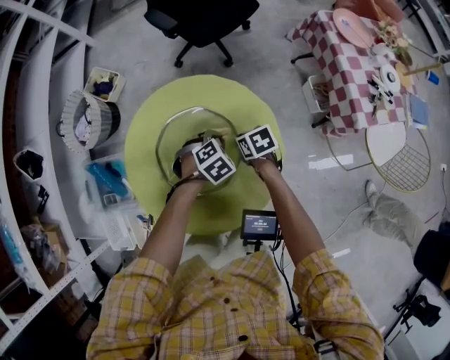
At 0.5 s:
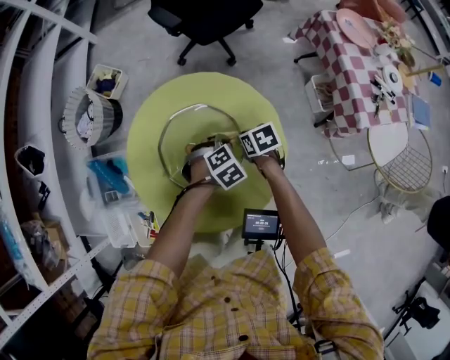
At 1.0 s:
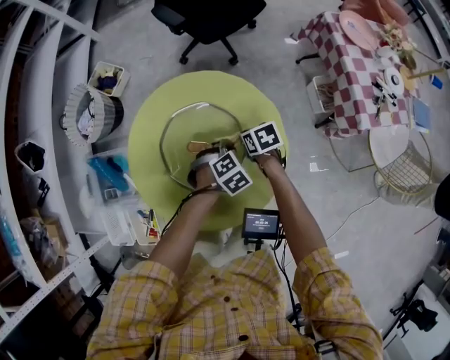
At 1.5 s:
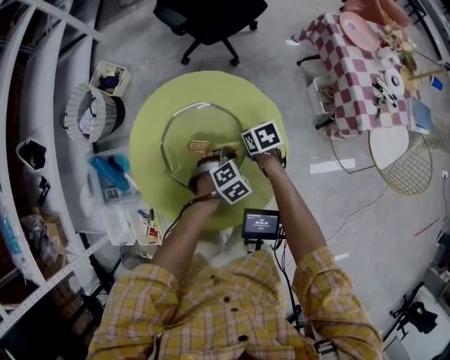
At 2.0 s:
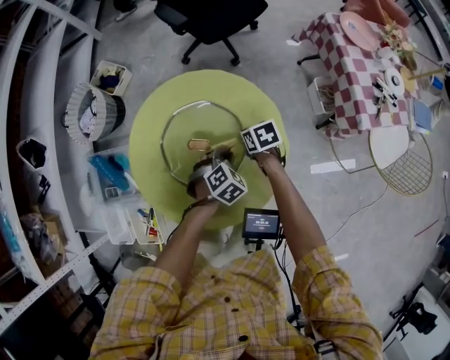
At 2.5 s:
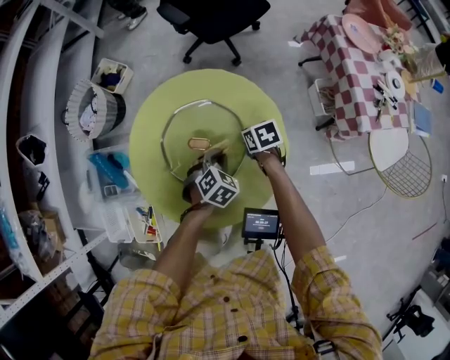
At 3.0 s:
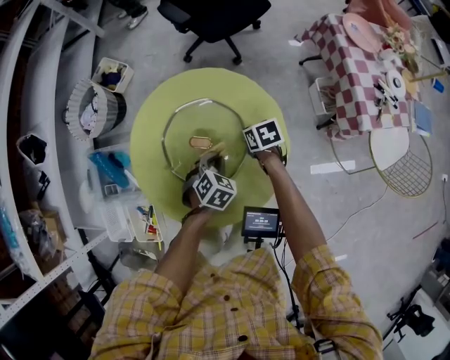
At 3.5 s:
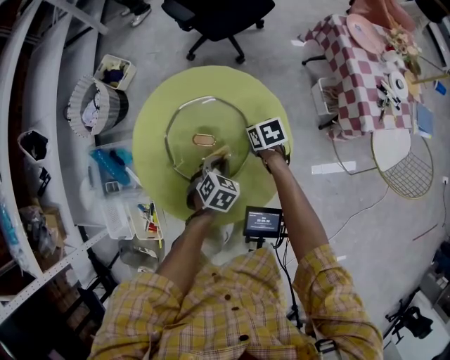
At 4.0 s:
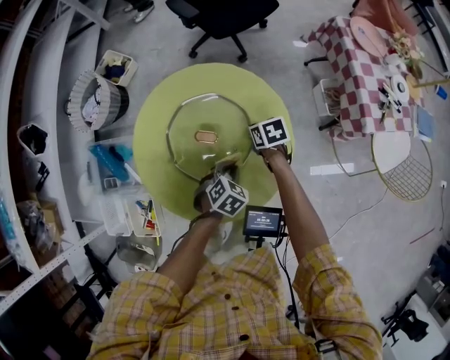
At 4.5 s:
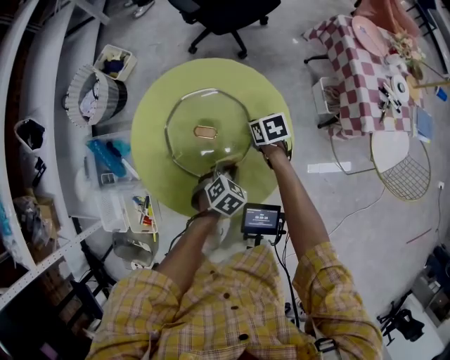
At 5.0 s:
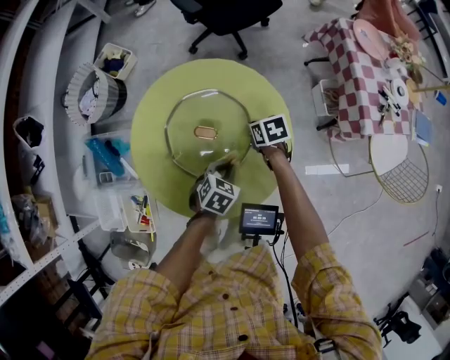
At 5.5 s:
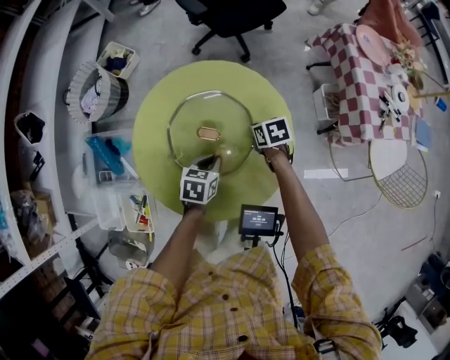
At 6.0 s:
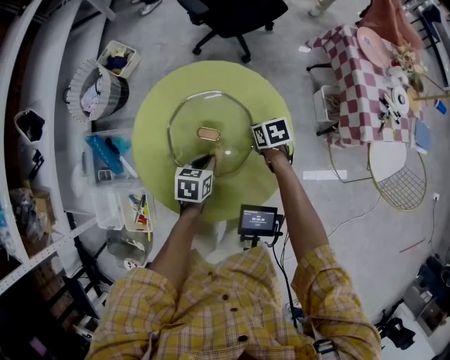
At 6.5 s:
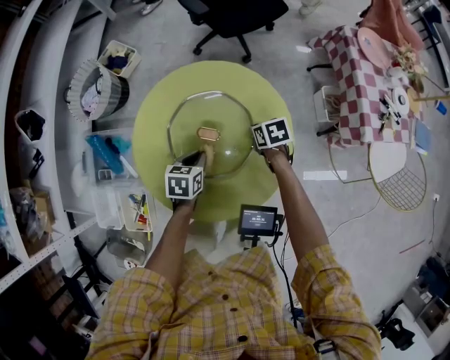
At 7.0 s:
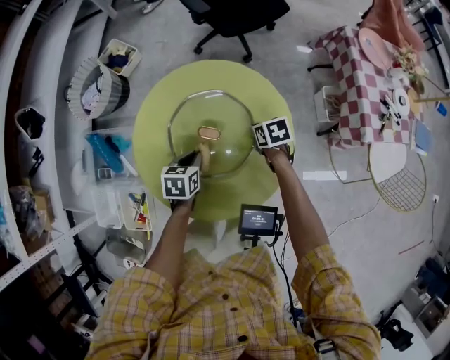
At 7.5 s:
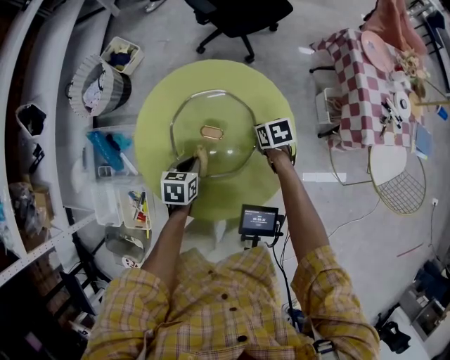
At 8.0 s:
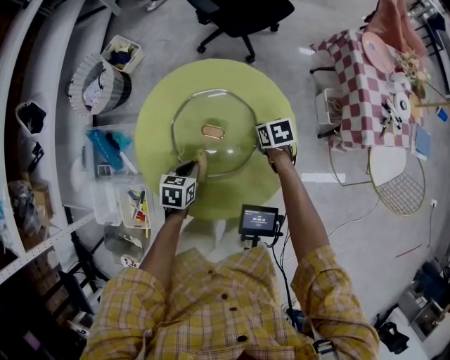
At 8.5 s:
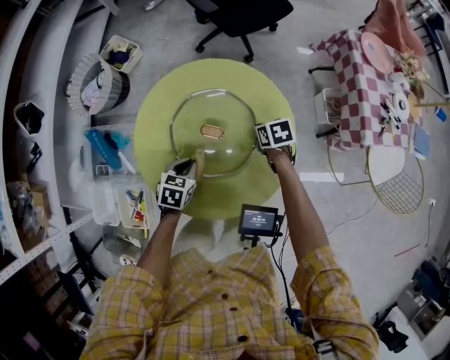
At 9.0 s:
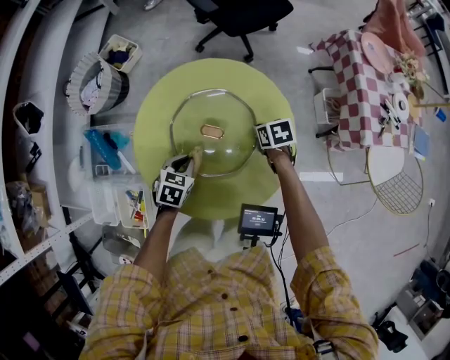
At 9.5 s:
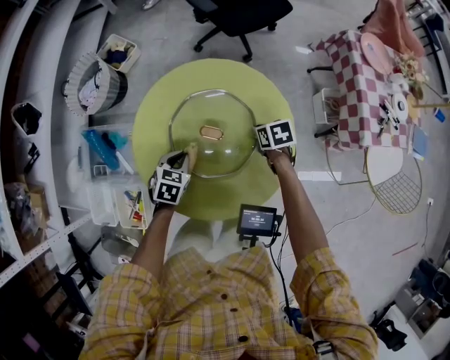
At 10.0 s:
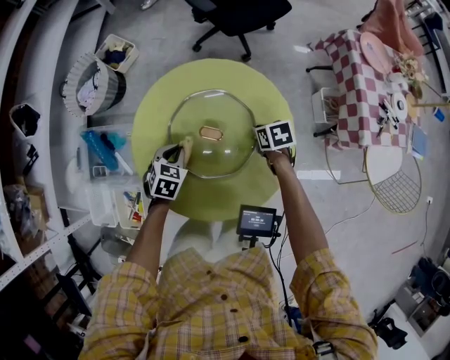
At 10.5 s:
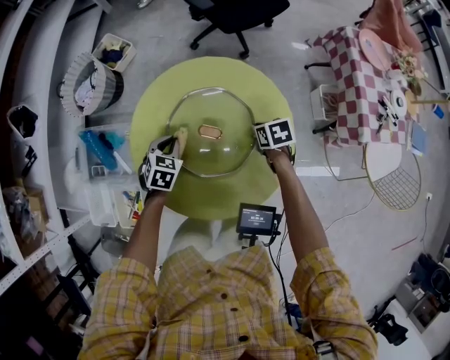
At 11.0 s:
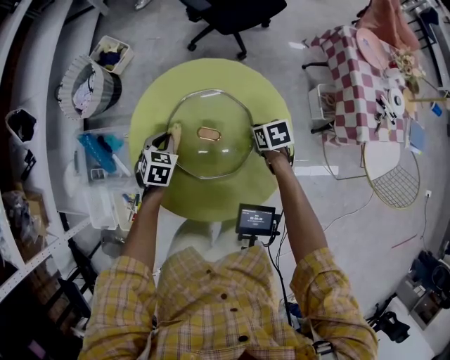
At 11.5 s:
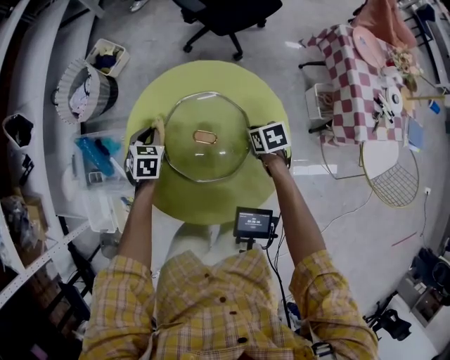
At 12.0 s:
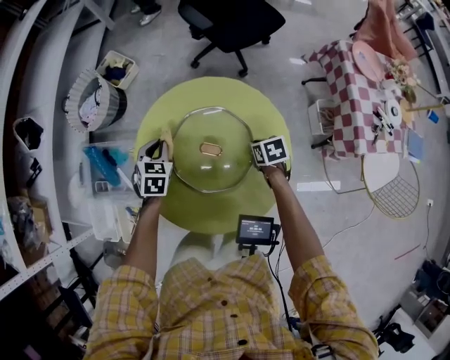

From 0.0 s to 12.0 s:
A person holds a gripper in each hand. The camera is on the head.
From 0.0 s to 2.0 s: The left gripper travels backward by about 5 cm.
From 2.0 s to 4.0 s: The left gripper heads backward, covering some 5 cm.
From 4.0 s to 6.0 s: The left gripper heads to the left, covering roughly 10 cm, and changes its angle by approximately 40 degrees.
From 6.0 s to 8.0 s: The left gripper shifts approximately 5 cm to the left.
From 8.0 s to 10.0 s: The left gripper shifts approximately 5 cm forward, and swivels approximately 20 degrees.
From 10.0 s to 12.0 s: The left gripper moves forward and upward, roughly 10 cm.

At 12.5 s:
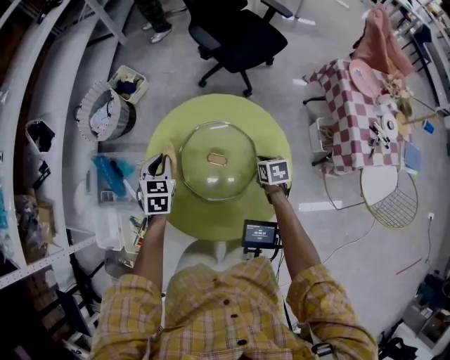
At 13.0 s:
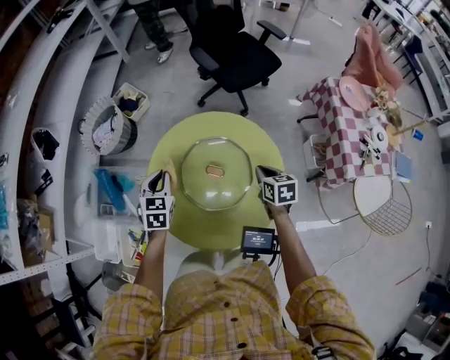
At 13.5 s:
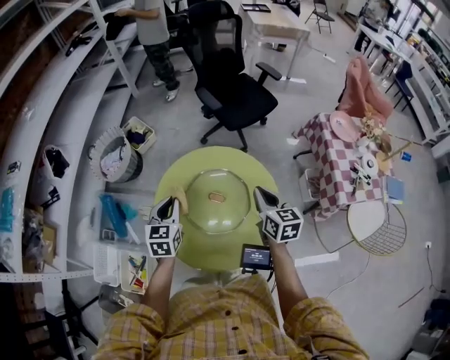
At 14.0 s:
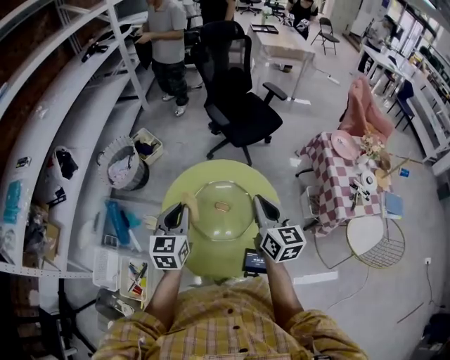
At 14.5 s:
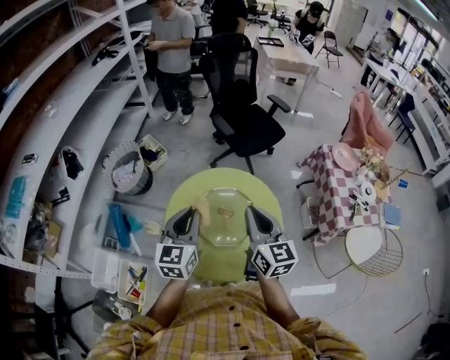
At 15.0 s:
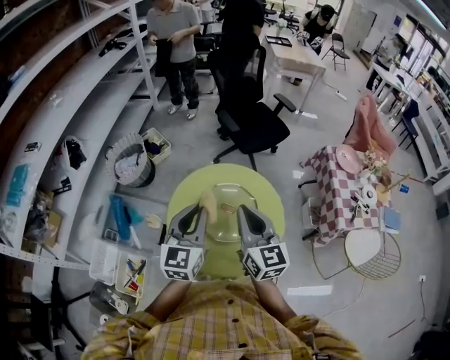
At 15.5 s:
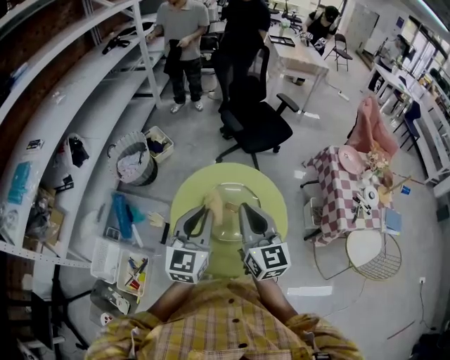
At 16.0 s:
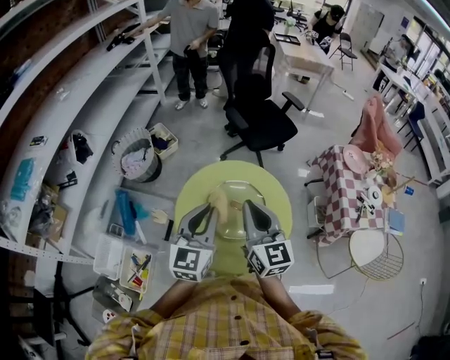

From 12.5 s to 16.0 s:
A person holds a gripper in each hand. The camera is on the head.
From 12.5 s to 14.5 s: The left gripper travels upward and backward by about 30 cm, and points its fingers some 30 degrees further upward. Meanwhile the right gripper goes about 40 cm upward, and tips its fingers upward by approximately 50 degrees.
From 14.5 s to 16.0 s: The right gripper heads to the left, covering some 5 cm.

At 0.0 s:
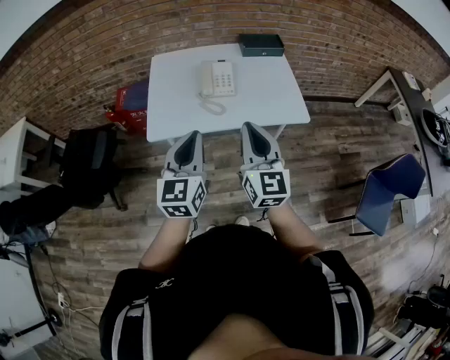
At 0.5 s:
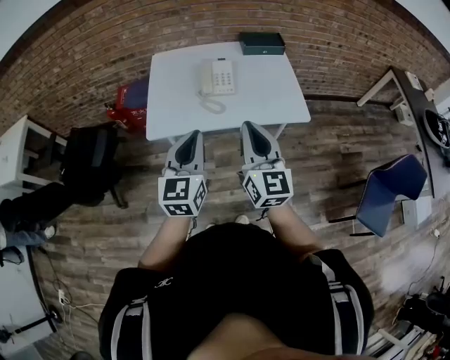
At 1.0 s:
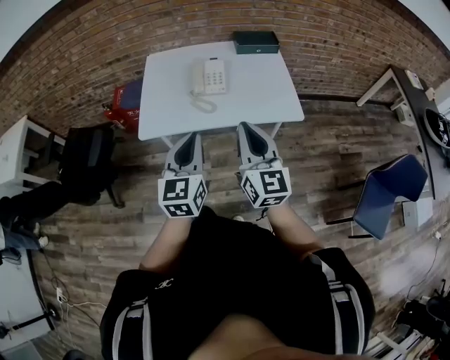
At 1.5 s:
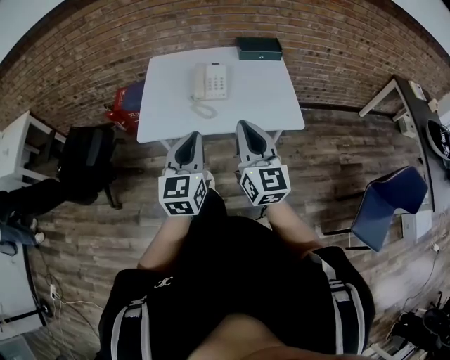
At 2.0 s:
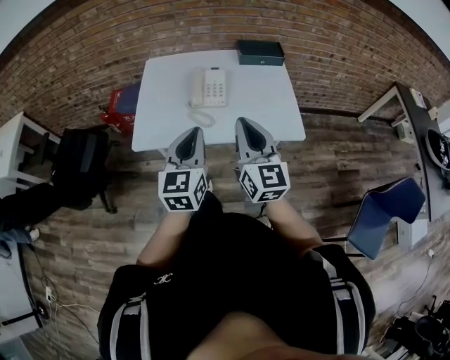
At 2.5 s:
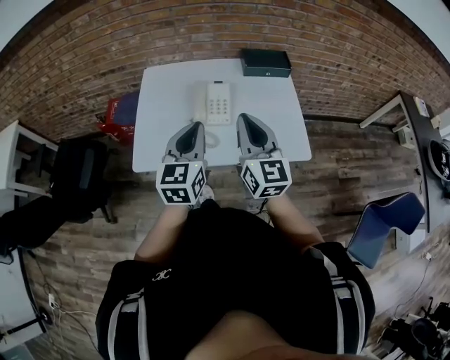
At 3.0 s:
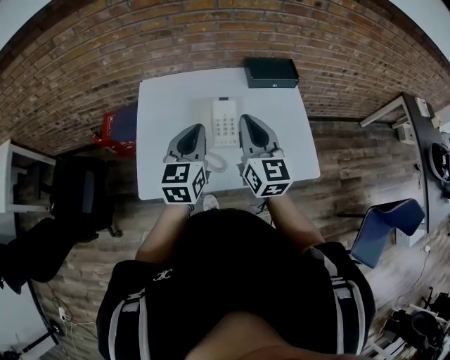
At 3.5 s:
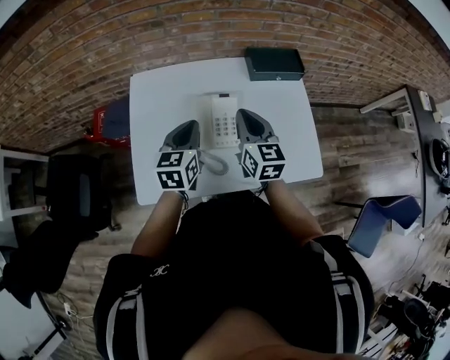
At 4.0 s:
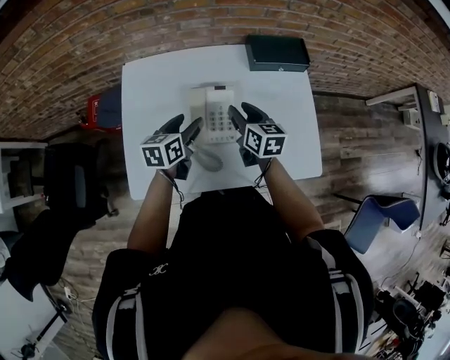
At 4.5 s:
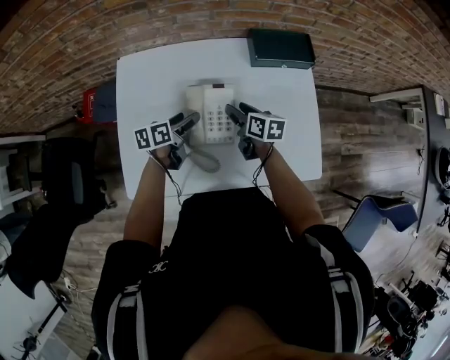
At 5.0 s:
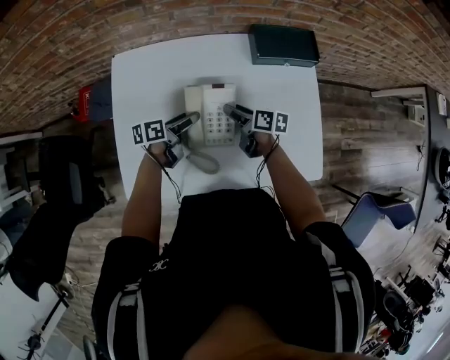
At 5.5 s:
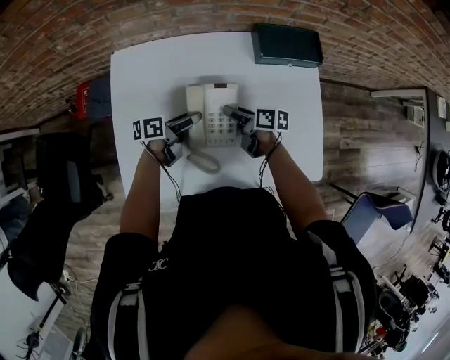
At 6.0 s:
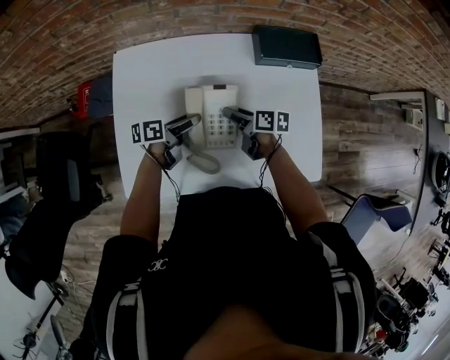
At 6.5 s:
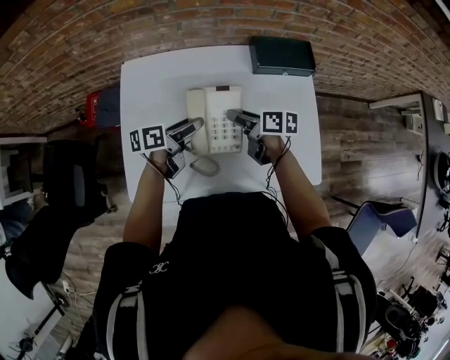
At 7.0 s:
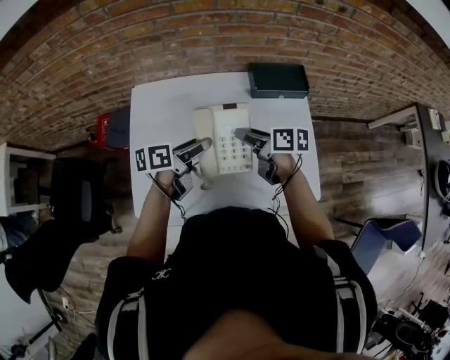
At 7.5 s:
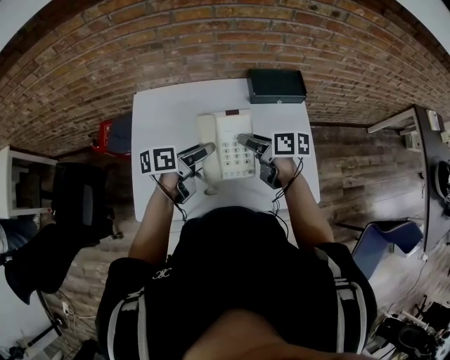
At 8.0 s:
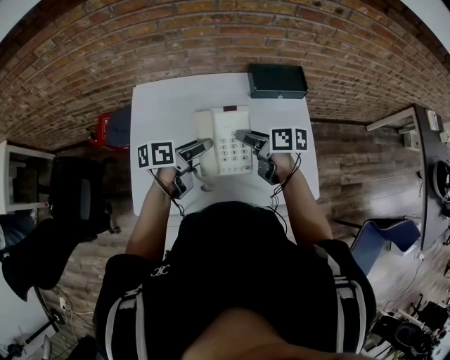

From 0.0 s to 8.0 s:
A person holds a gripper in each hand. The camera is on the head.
From 0.0 s to 2.0 s: Both grippers move forward and to the right, some 10 cm.
From 2.0 s to 4.0 s: Both grippers travel together forward and downward, about 40 cm. The left gripper turns by about 40 degrees, and opens its fingers; the right gripper angles its fingers downward, by approximately 30 degrees, and opens up.
From 4.0 s to 6.0 s: The grippers both shift downward by some 10 cm. The right gripper rotates some 40 degrees. The left gripper turns by roughly 40 degrees.
From 6.0 s to 8.0 s: Both grippers travel together upward, some 15 cm.

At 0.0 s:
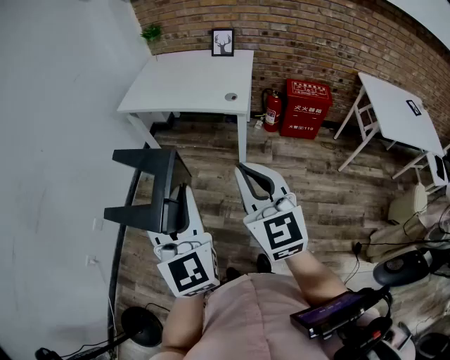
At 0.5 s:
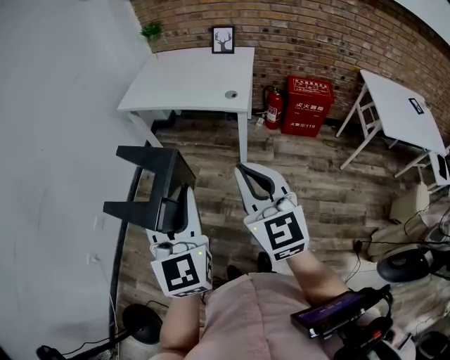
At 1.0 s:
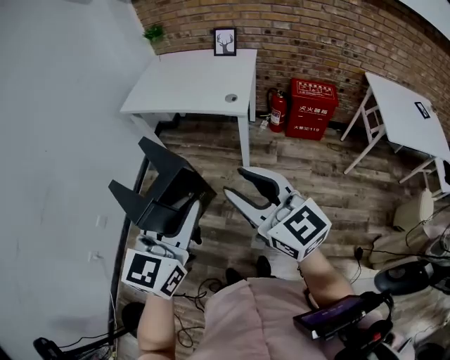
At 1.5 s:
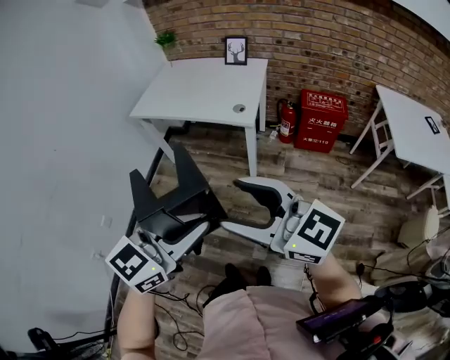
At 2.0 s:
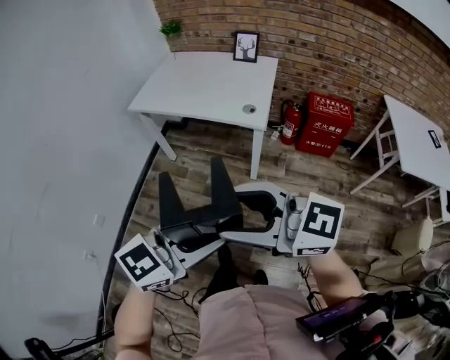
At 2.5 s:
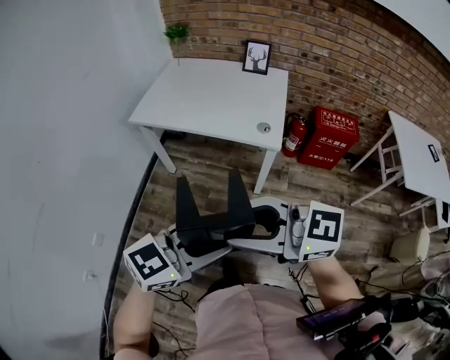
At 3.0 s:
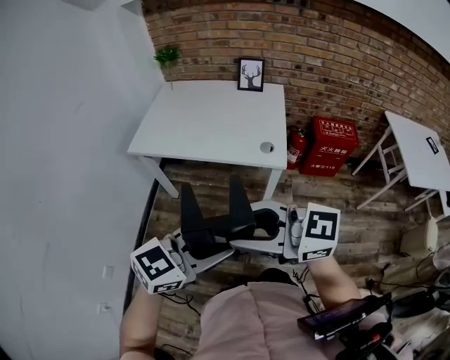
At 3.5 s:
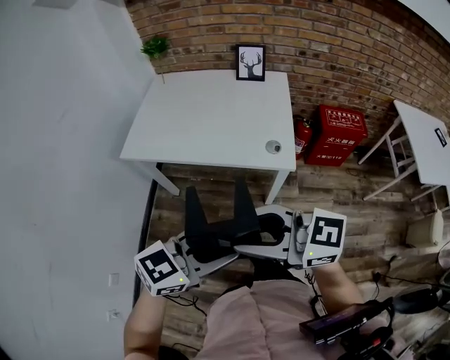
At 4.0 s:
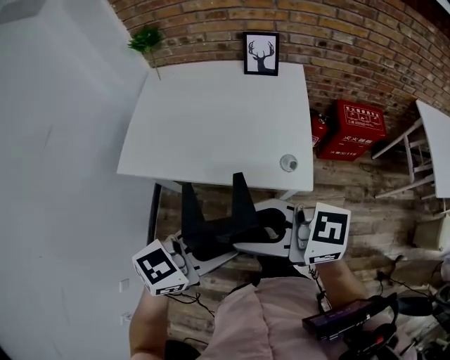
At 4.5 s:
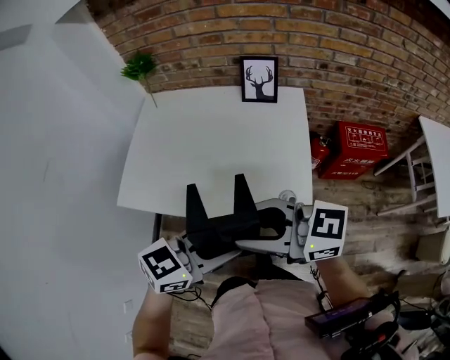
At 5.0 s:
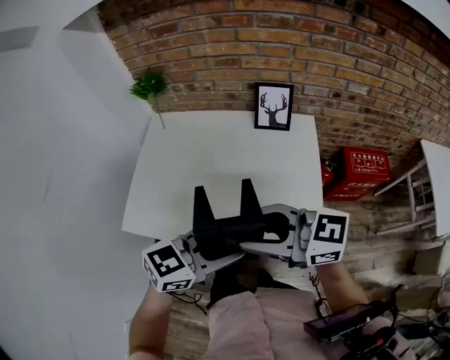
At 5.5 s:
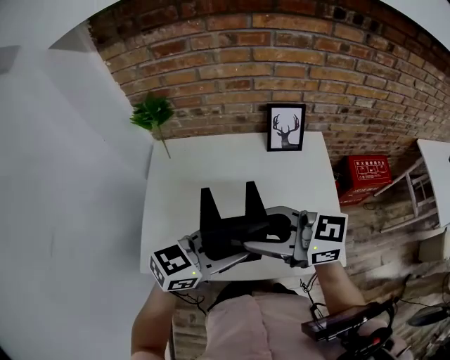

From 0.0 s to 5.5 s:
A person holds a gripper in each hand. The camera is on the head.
From 0.0 s to 2.0 s: The left gripper changes place by roughly 10 cm, and turns by some 60 degrees; the right gripper rotates some 60 degrees, and opens up.
From 2.0 s to 3.5 s: The left gripper changes place by approximately 25 cm. Meanwhile the right gripper ends up roughly 25 cm from where it was.
From 3.5 s to 5.5 s: The pair of grippers is taken some 50 cm.
